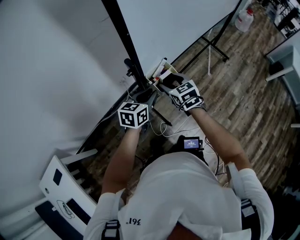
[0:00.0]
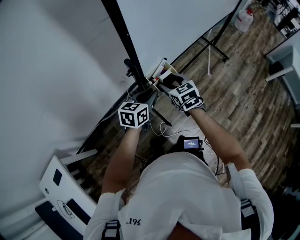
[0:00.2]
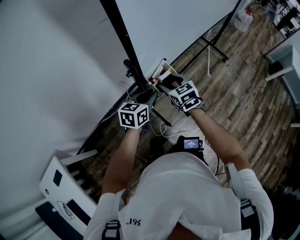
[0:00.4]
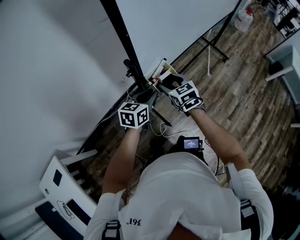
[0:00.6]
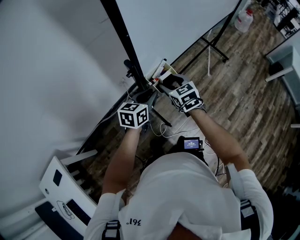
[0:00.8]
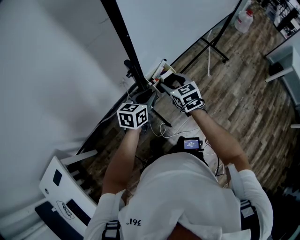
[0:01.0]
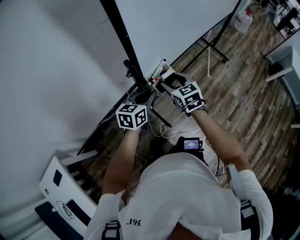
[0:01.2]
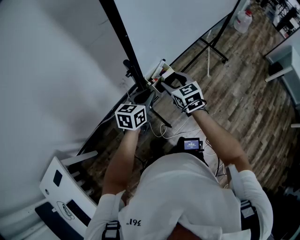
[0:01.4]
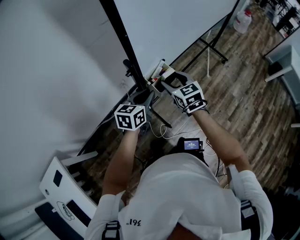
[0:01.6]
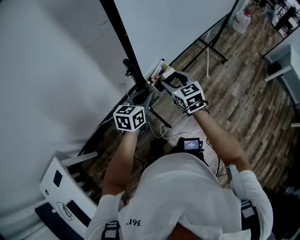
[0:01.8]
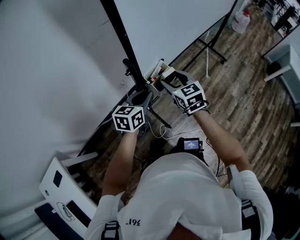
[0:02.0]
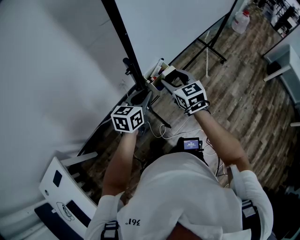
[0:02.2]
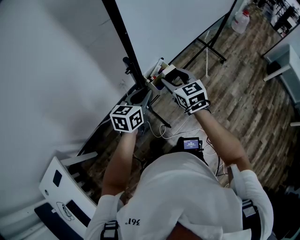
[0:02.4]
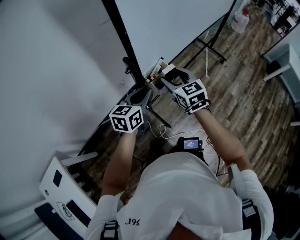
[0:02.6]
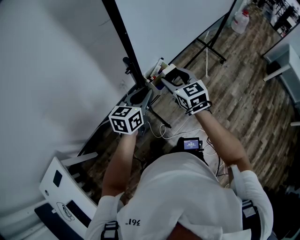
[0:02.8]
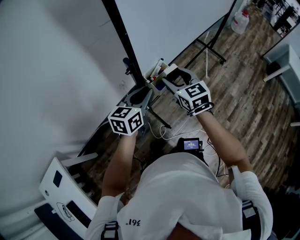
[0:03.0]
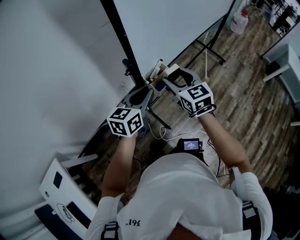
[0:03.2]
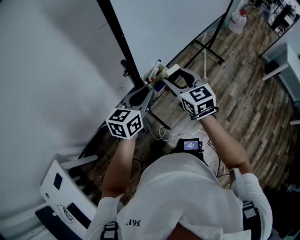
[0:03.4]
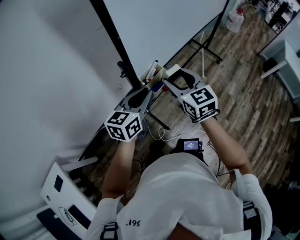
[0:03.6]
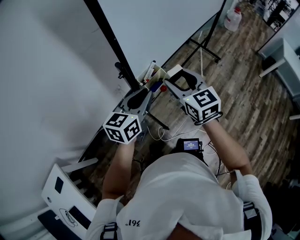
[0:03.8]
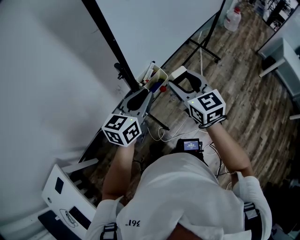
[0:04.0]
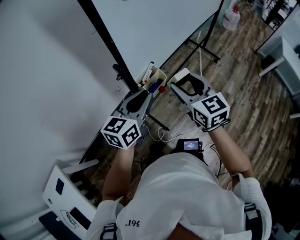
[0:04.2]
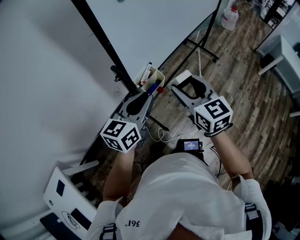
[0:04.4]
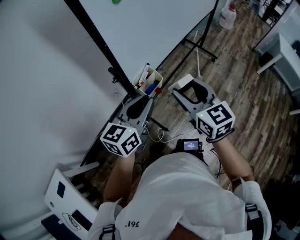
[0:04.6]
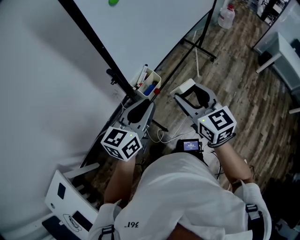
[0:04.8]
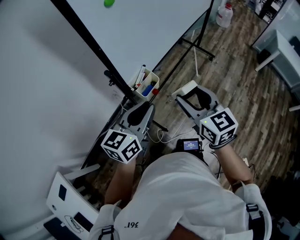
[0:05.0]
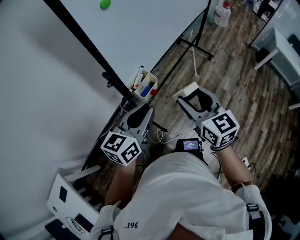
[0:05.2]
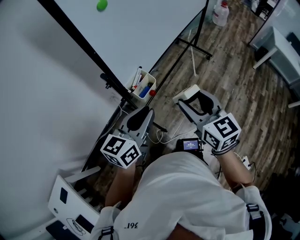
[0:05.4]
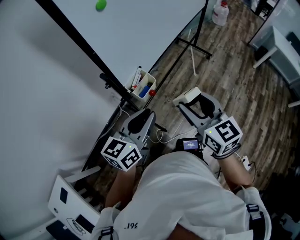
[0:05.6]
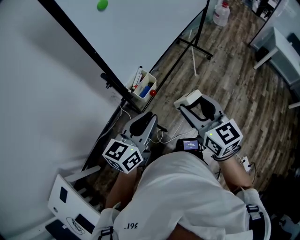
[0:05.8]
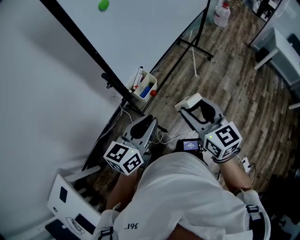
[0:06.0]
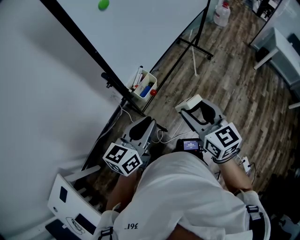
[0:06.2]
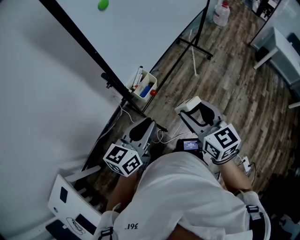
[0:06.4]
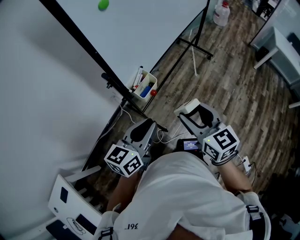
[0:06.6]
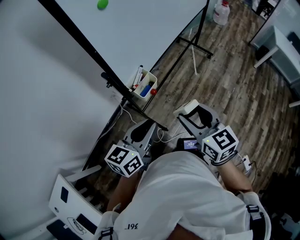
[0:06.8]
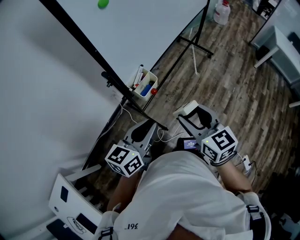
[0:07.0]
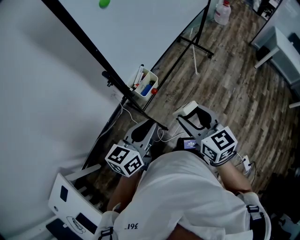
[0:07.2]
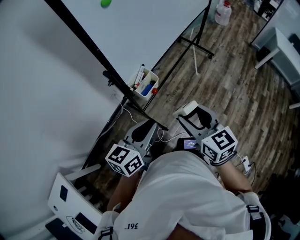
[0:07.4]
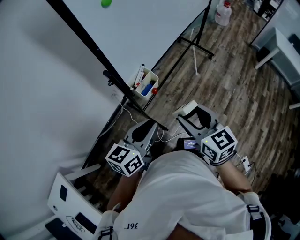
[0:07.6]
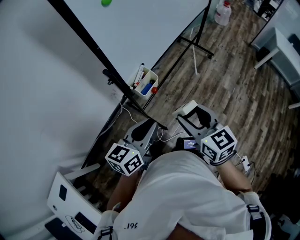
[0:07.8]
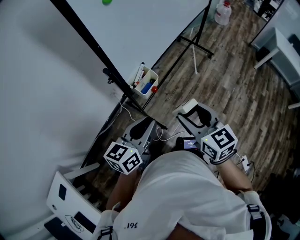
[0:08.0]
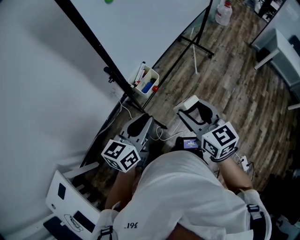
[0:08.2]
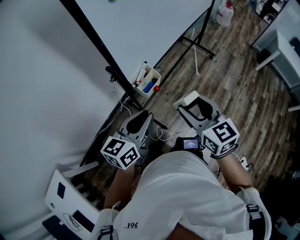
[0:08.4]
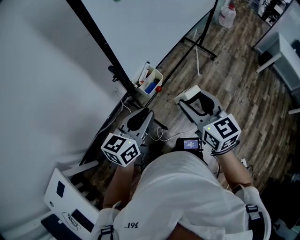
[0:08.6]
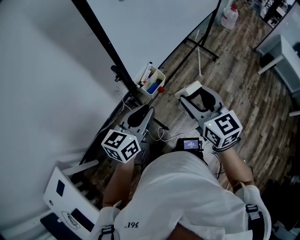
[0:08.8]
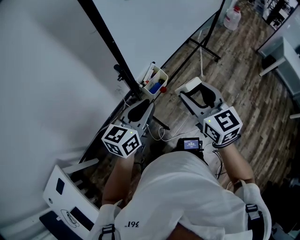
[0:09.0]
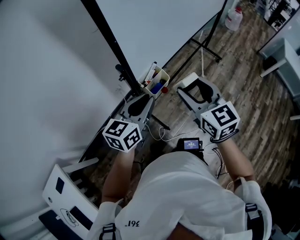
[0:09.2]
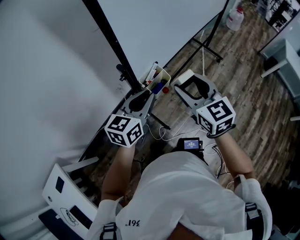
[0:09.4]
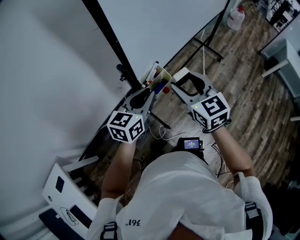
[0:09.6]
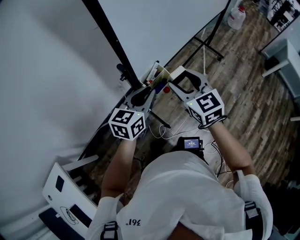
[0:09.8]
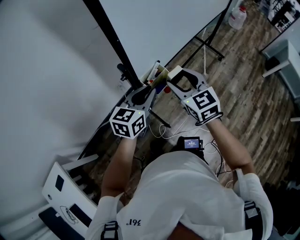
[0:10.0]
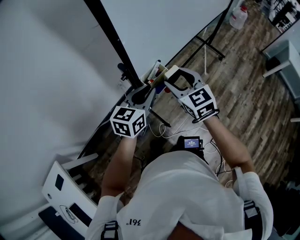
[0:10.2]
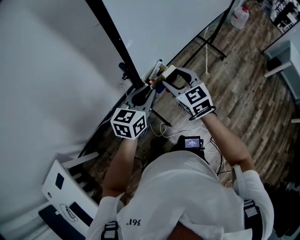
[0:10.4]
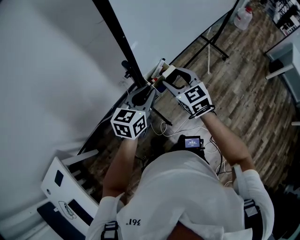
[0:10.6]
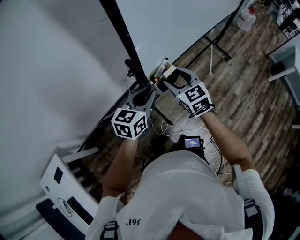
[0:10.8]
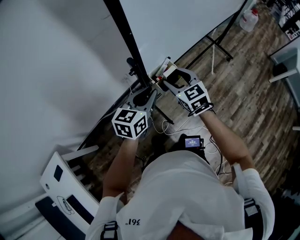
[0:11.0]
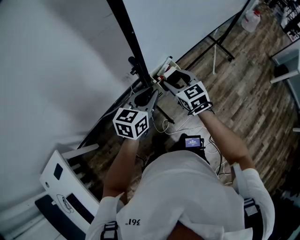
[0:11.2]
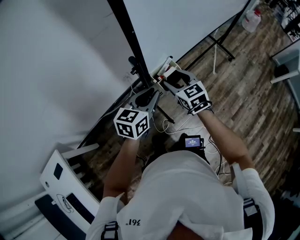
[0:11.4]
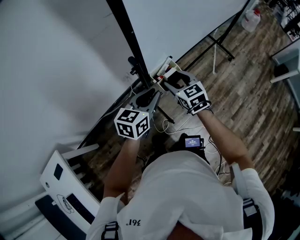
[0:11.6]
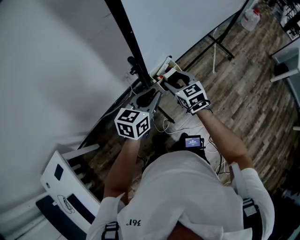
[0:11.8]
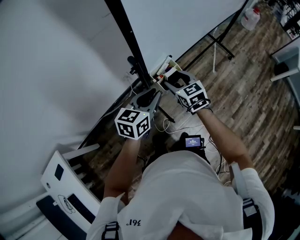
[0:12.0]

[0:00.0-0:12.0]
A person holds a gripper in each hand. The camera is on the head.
0:00.0 to 0:01.6: The grippers stay close to where they were, moving slightly.
0:01.6 to 0:03.0: The two grippers go roughly 5 cm upward.
0:03.0 to 0:04.4: The left gripper shifts approximately 5 cm upward. The right gripper travels upward, to the right and backward by approximately 10 cm.
0:04.4 to 0:06.0: The left gripper moves backward, approximately 5 cm, while the right gripper is displaced backward and to the right by about 10 cm.
0:06.0 to 0:07.6: The grippers stay close to where they were, moving slightly.
0:07.6 to 0:09.0: Both grippers move forward, some 5 cm.
0:09.0 to 0:10.4: The right gripper travels downward, forward and to the left by approximately 15 cm, while the left gripper is displaced forward and downward by about 10 cm.
0:10.4 to 0:12.0: The right gripper is displaced downward by approximately 10 cm.

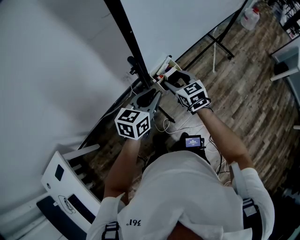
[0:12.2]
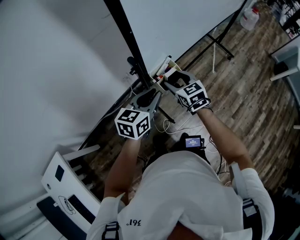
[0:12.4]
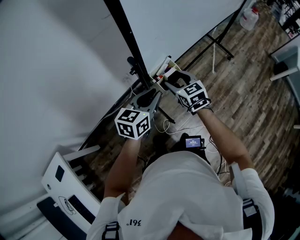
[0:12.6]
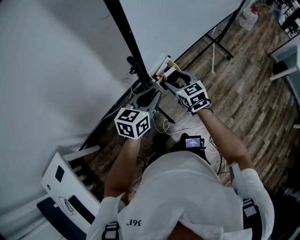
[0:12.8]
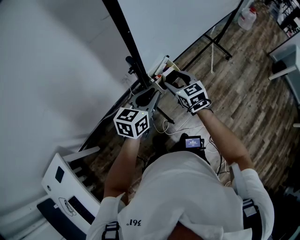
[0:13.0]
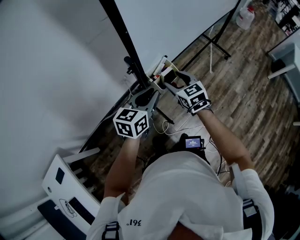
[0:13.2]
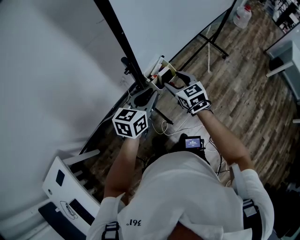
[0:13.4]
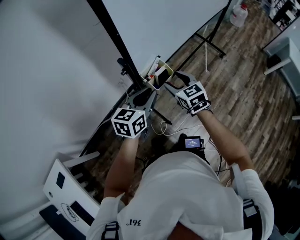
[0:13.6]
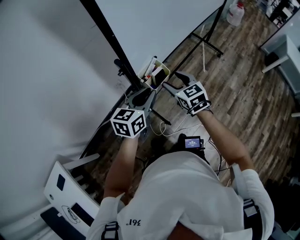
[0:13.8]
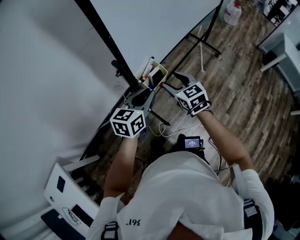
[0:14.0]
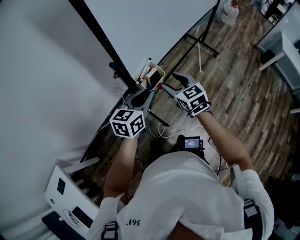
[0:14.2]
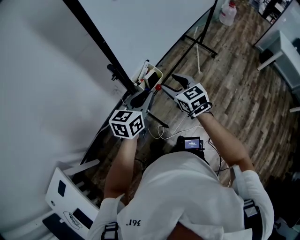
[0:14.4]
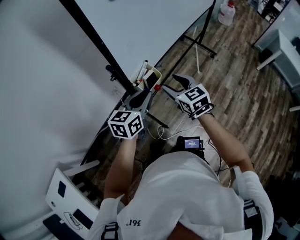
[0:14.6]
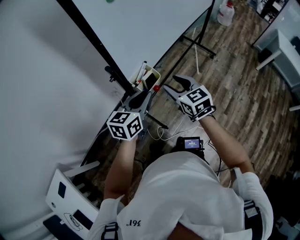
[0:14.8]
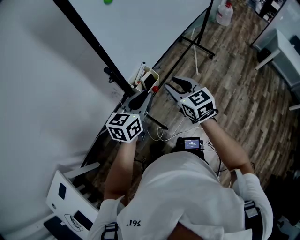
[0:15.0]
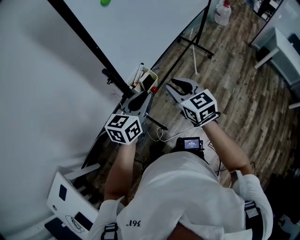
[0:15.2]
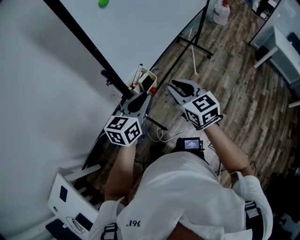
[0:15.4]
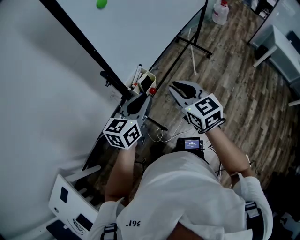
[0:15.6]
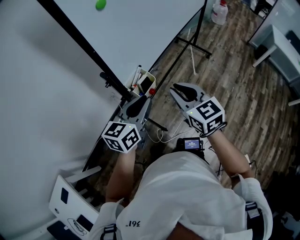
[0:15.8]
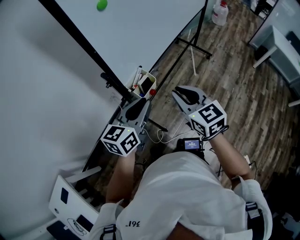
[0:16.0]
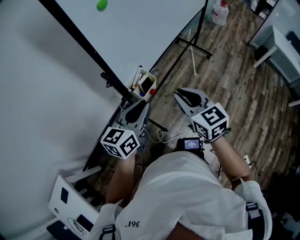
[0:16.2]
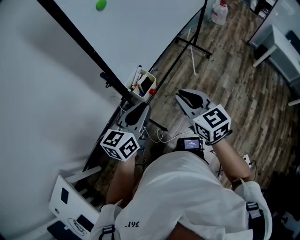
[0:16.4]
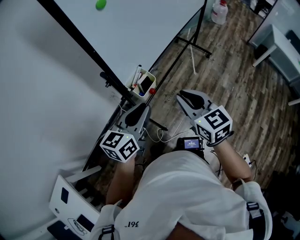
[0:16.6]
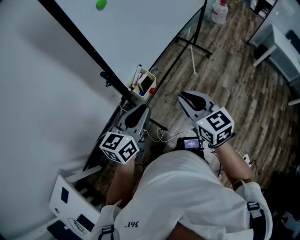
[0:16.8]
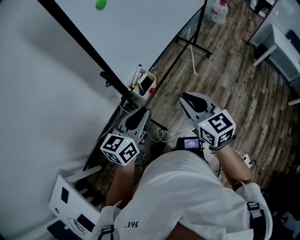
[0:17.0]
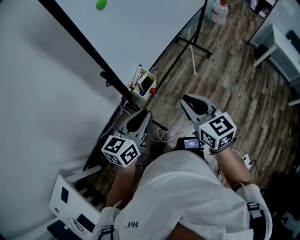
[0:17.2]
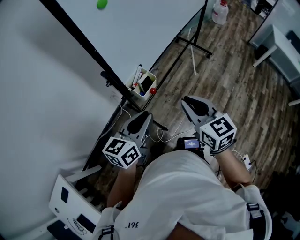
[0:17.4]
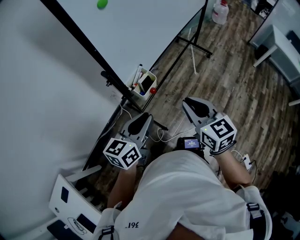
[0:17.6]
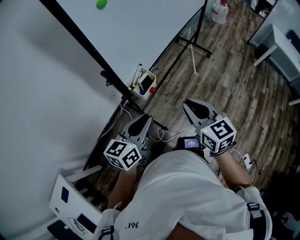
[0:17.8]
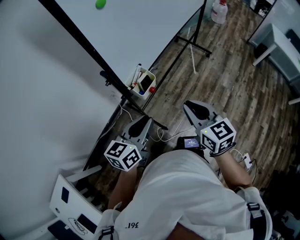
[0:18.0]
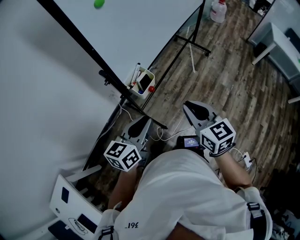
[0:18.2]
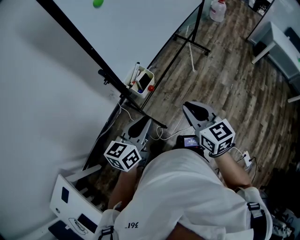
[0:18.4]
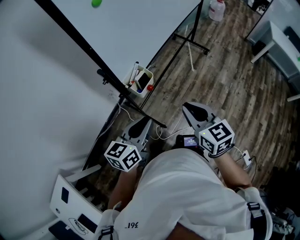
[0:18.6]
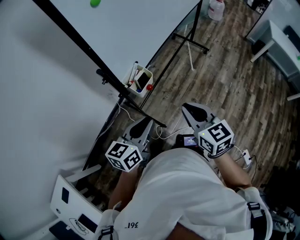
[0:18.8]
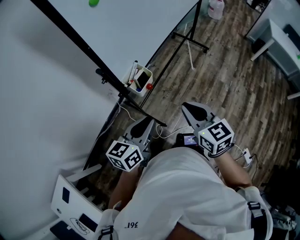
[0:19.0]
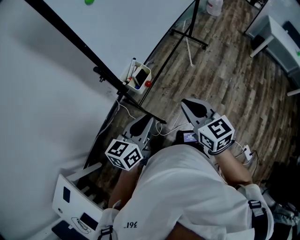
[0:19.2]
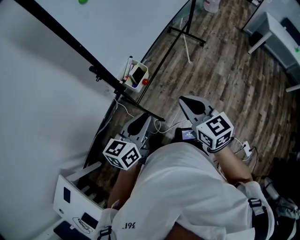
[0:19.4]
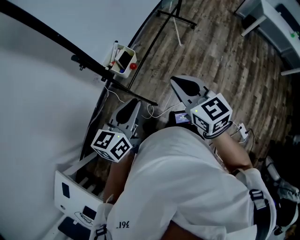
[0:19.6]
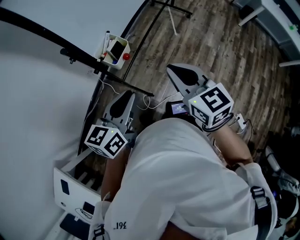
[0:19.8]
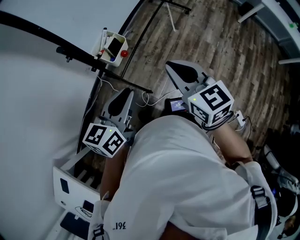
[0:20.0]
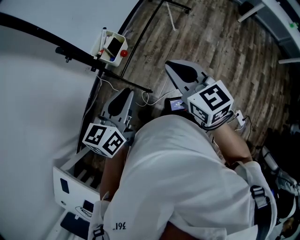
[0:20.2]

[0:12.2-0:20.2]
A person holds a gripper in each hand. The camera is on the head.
0:12.2 to 0:13.8: The right gripper moves approximately 5 cm.
0:13.8 to 0:15.4: The left gripper shifts by some 5 cm. Meanwhile the right gripper goes roughly 10 cm upward, to the right and backward, and closes up.
0:15.4 to 0:17.0: The two grippers go roughly 5 cm backward.
0:17.0 to 0:18.6: The left gripper ends up roughly 5 cm from where it was. Meanwhile the right gripper moves about 5 cm.
0:18.6 to 0:20.2: There are only small adjustments of the grippers.

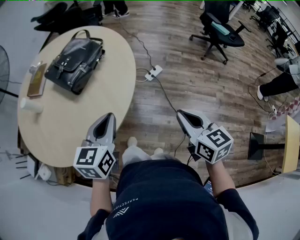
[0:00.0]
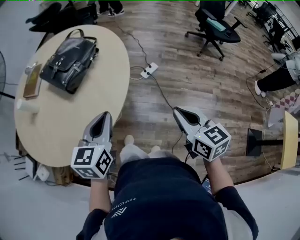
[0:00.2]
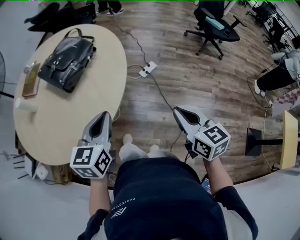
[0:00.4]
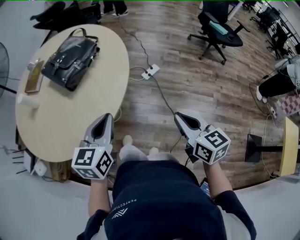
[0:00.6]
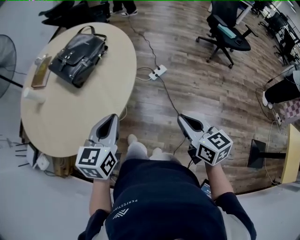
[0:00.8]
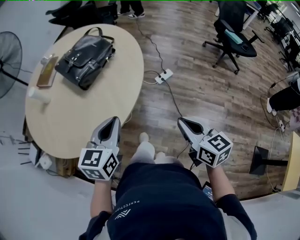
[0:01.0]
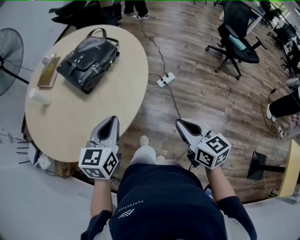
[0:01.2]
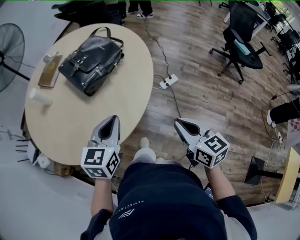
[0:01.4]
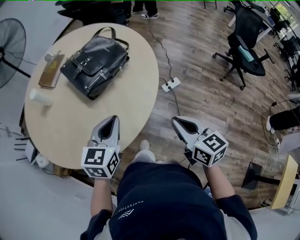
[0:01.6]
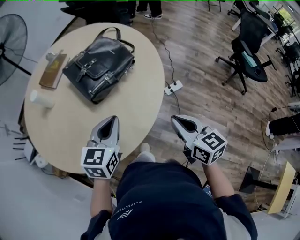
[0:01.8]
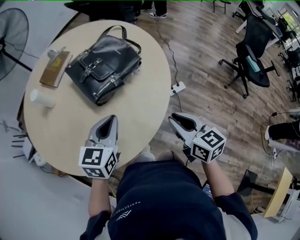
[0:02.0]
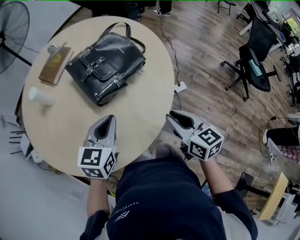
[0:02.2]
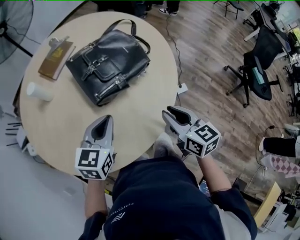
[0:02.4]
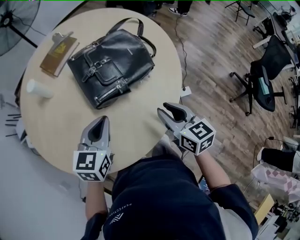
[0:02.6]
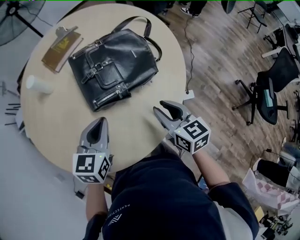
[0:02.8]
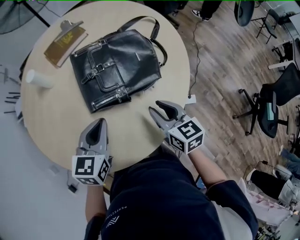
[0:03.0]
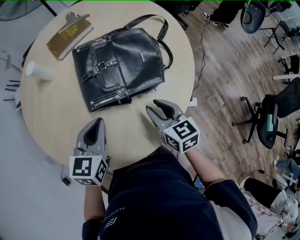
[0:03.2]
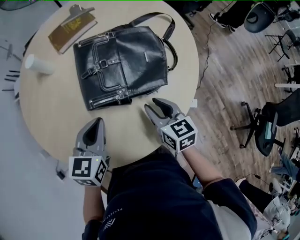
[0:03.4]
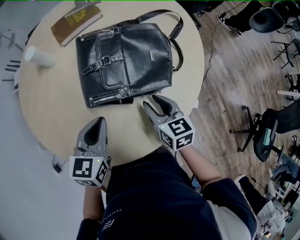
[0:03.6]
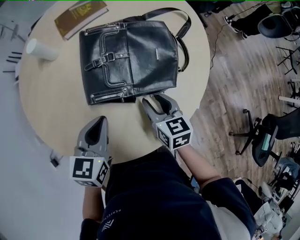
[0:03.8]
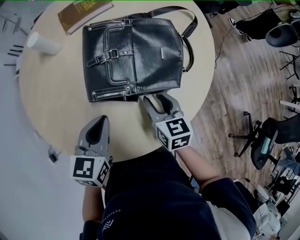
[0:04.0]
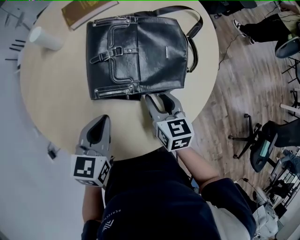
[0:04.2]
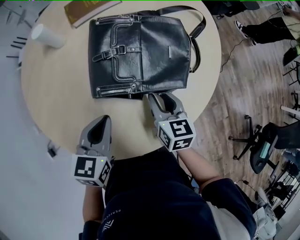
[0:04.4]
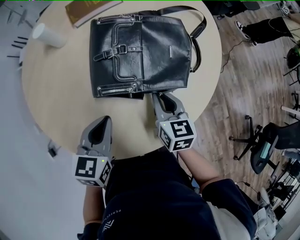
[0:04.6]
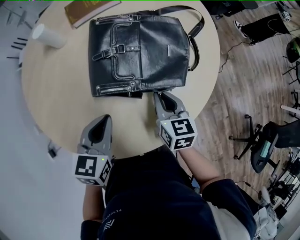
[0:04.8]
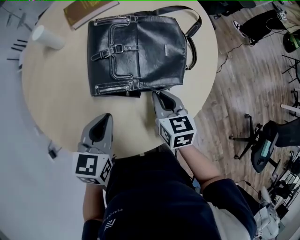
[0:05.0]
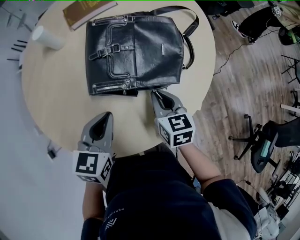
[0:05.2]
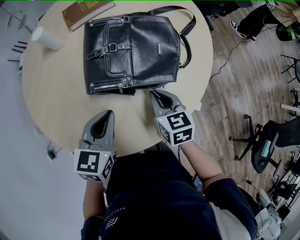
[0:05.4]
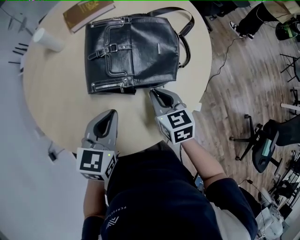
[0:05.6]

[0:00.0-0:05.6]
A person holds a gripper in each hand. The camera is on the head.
0:00.0 to 0:01.4: The left gripper changes place by approximately 5 cm, while the right gripper shifts roughly 5 cm forward.
0:01.4 to 0:02.8: The right gripper moves forward, some 30 cm, changes its angle by some 30 degrees, and opens its fingers; the left gripper travels forward and to the left by some 20 cm, and swivels about 20 degrees.
0:02.8 to 0:04.2: The left gripper changes its angle by about 20 degrees; the right gripper is displaced forward and downward by roughly 10 cm.
0:04.2 to 0:05.6: The right gripper closes its fingers.
